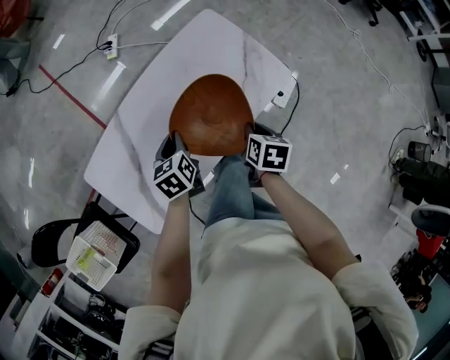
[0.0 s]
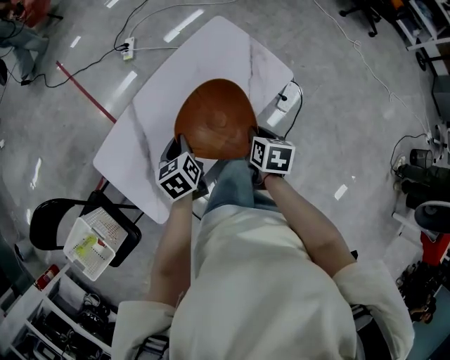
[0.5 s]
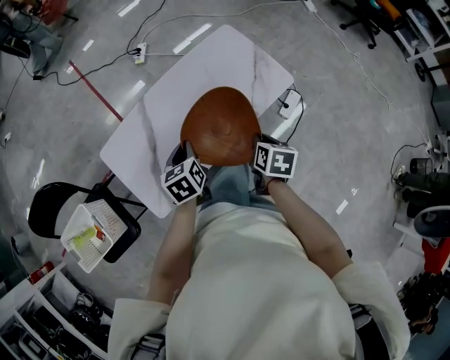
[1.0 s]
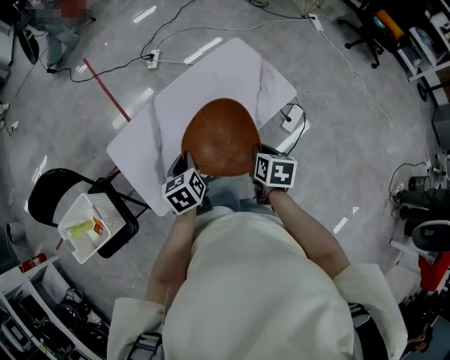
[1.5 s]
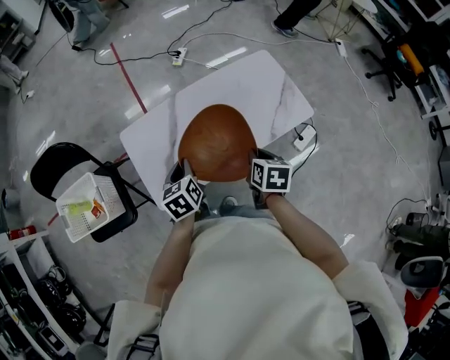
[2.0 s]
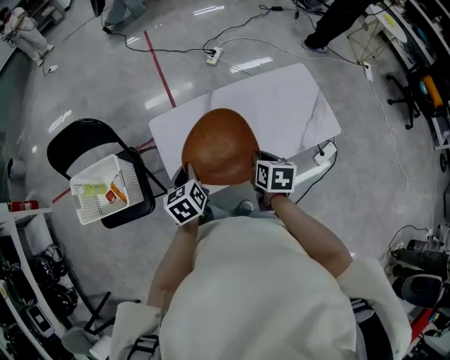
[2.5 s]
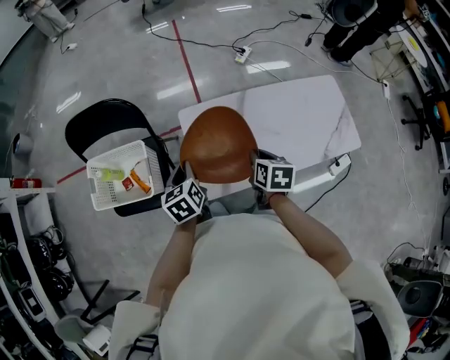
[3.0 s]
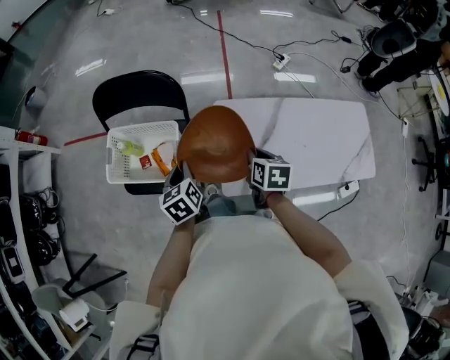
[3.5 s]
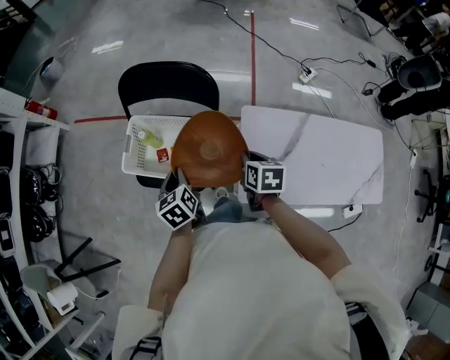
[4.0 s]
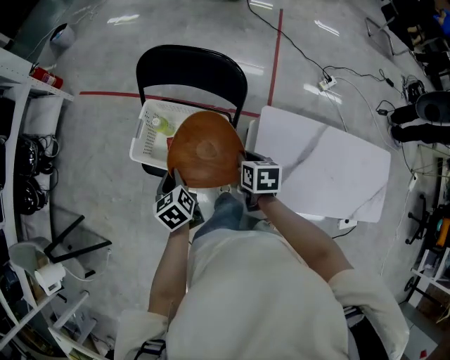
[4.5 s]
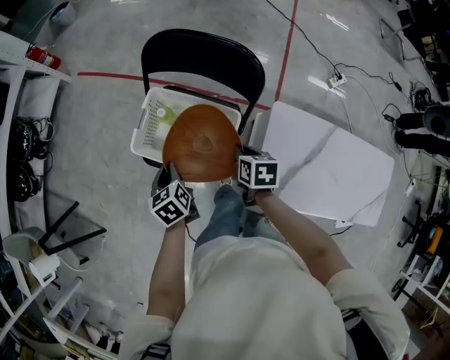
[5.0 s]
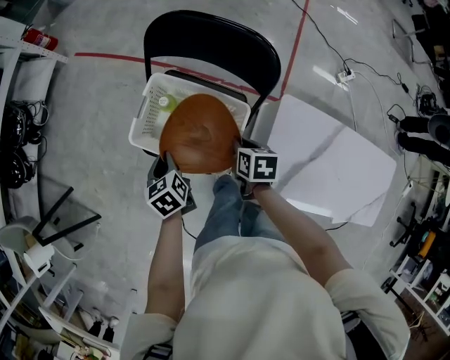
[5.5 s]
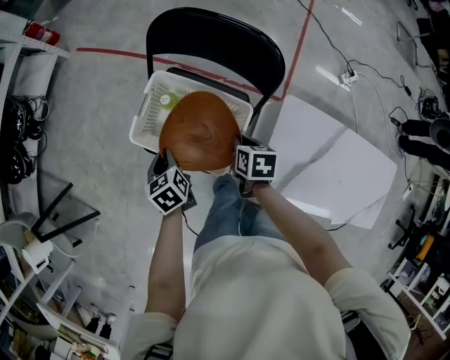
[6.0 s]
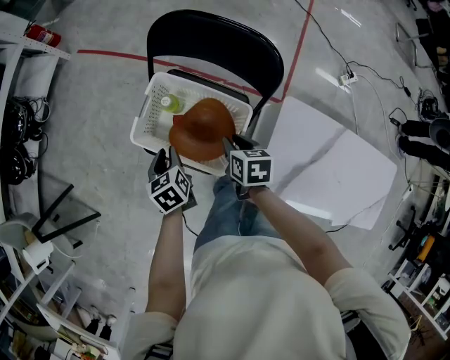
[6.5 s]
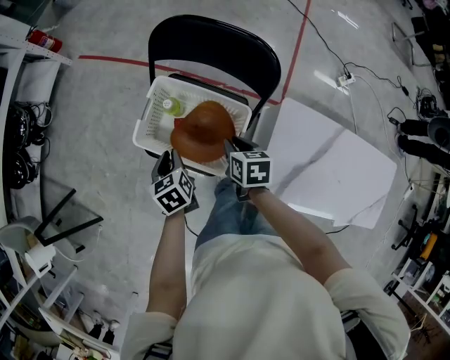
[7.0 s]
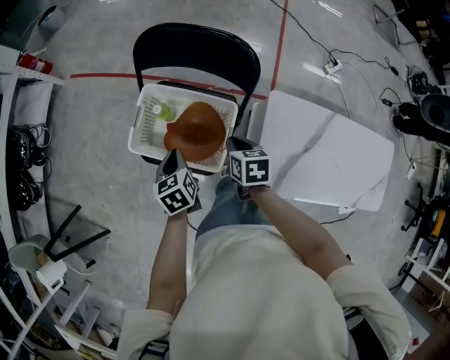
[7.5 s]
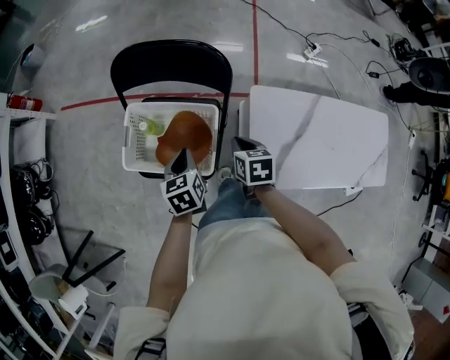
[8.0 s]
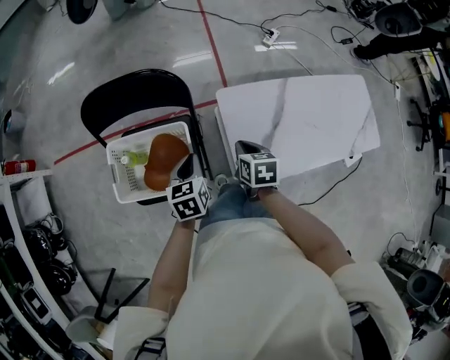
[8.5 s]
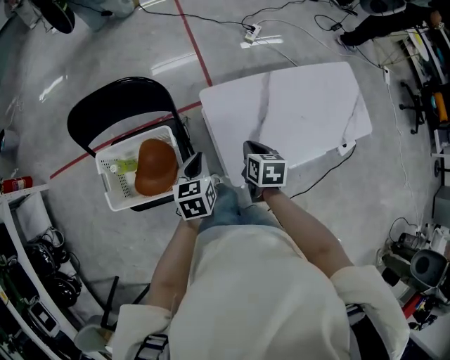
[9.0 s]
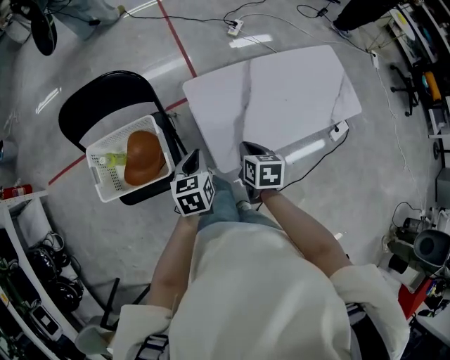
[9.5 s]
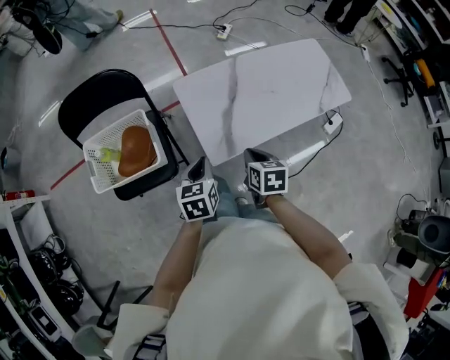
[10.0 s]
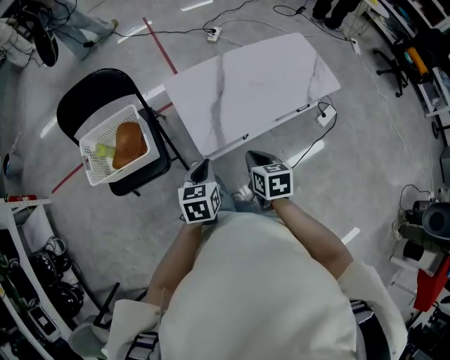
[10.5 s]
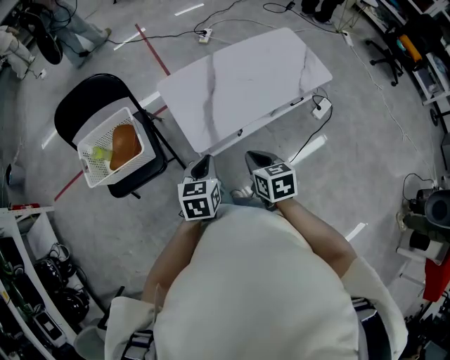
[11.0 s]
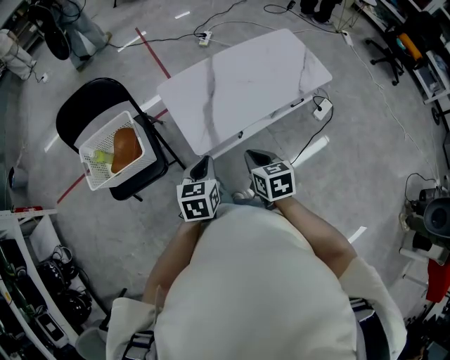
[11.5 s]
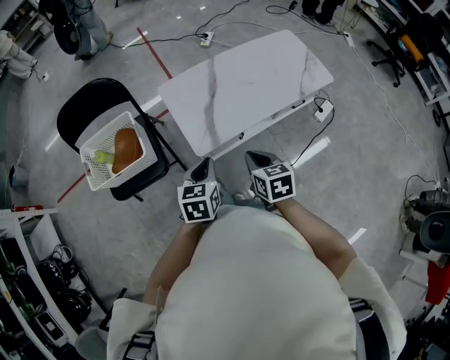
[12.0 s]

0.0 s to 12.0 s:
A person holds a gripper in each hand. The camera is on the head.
0.0 to 2.0 s: The right gripper heads upward, to the left and backward, covering about 20 cm, and changes its angle by some 20 degrees. The left gripper goes about 25 cm backward, to the left and upward.
2.0 to 4.0 s: The two grippers travel together, about 50 cm. The right gripper rotates some 40 degrees; the left gripper changes its angle by about 40 degrees.
4.0 to 6.0 s: The left gripper heads to the left, downward and forward, covering approximately 20 cm; the right gripper goes roughly 20 cm forward, downward and to the left.
6.0 to 8.0 s: The right gripper moves some 10 cm. Meanwhile the left gripper ends up roughly 15 cm from where it was, and turns by some 30 degrees.
8.0 to 10.0 s: The left gripper changes place by some 30 cm, and turns by some 30 degrees. Meanwhile the right gripper shifts by approximately 35 cm, and turns by approximately 30 degrees.
10.0 to 12.0 s: Both grippers move backward and to the right, some 15 cm.

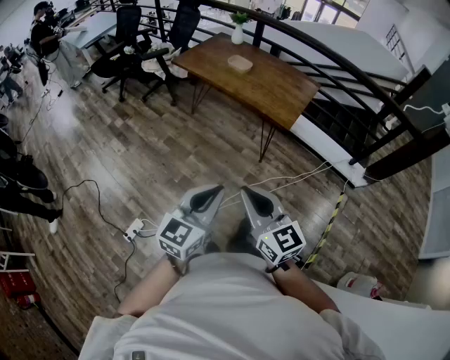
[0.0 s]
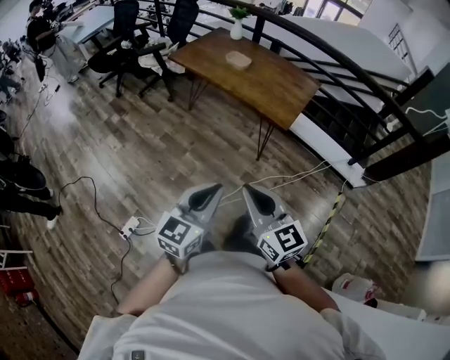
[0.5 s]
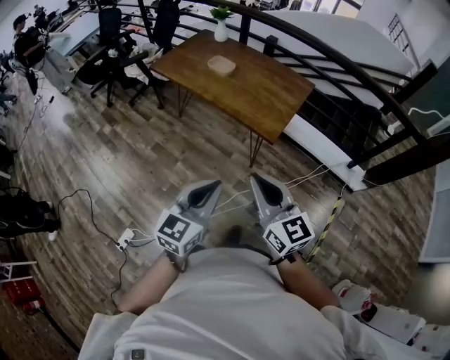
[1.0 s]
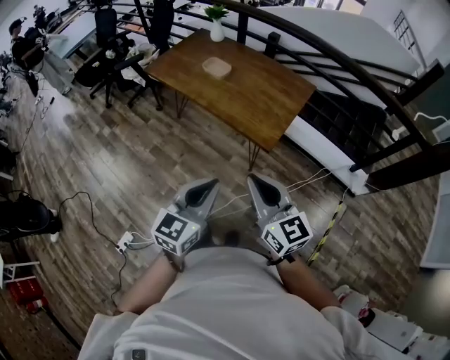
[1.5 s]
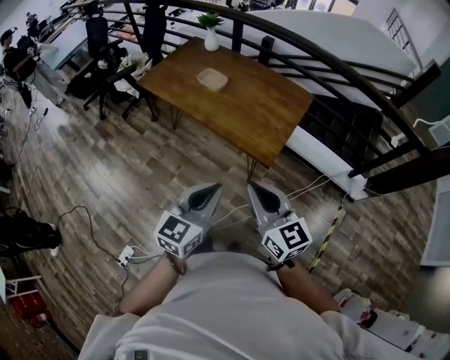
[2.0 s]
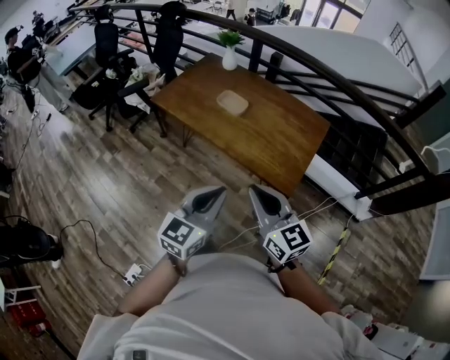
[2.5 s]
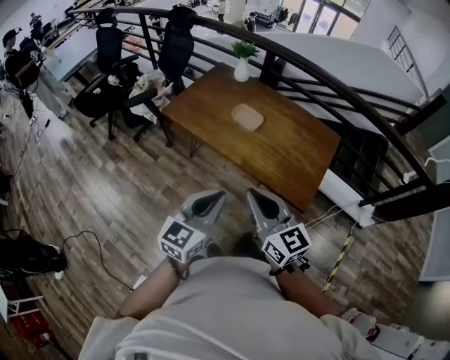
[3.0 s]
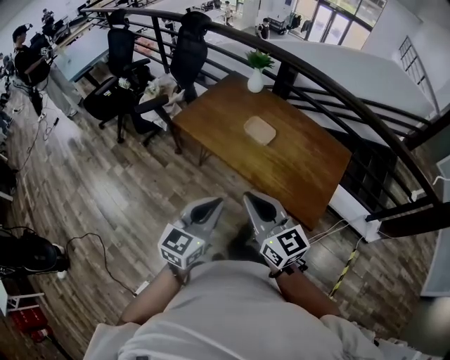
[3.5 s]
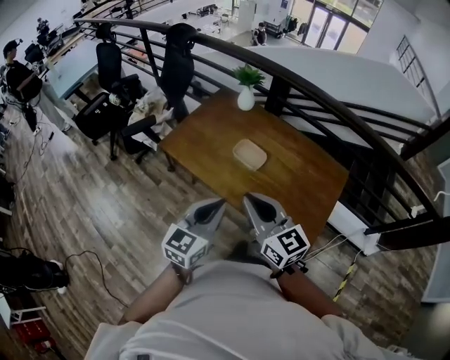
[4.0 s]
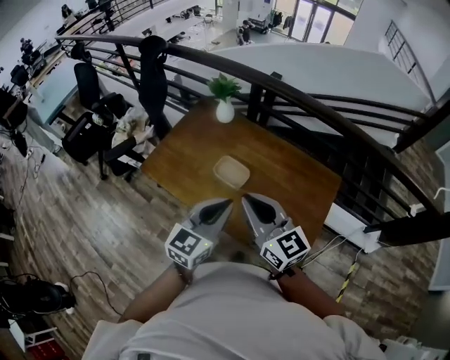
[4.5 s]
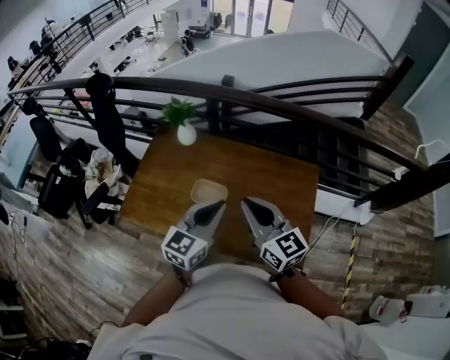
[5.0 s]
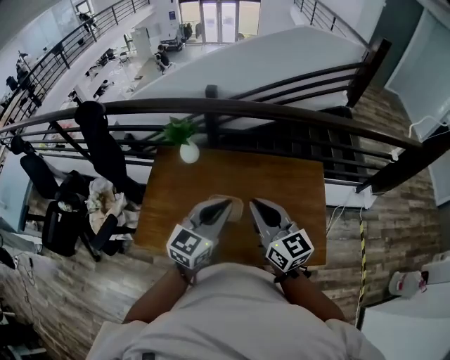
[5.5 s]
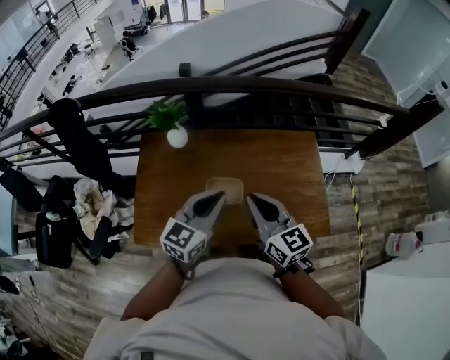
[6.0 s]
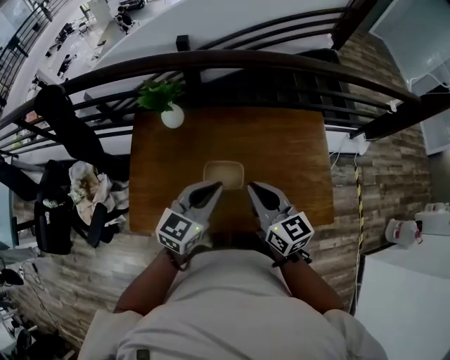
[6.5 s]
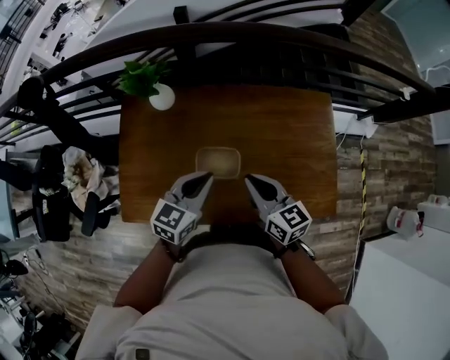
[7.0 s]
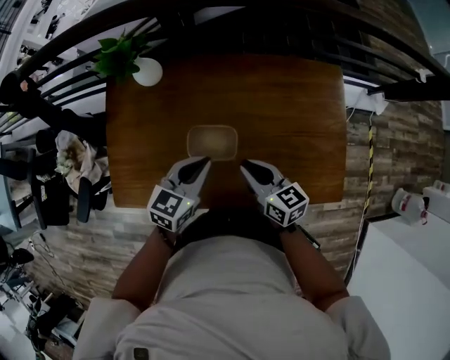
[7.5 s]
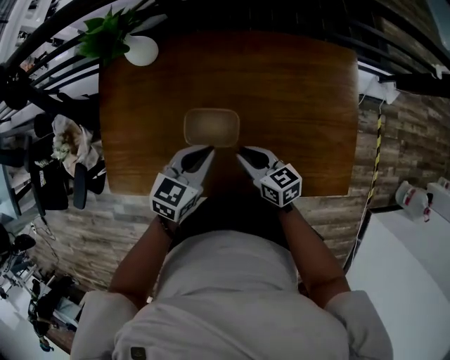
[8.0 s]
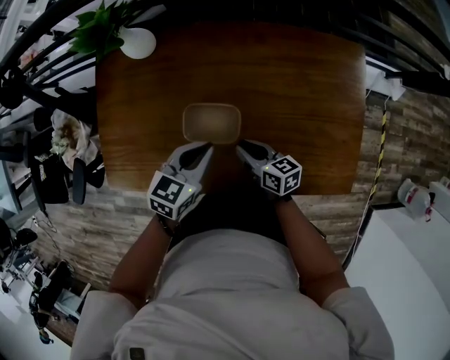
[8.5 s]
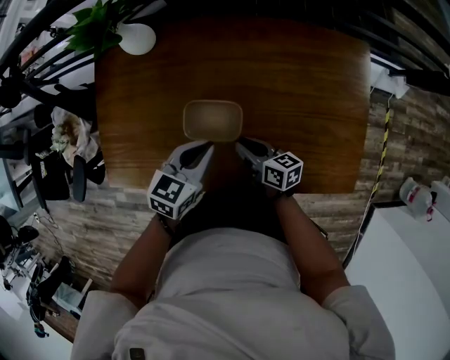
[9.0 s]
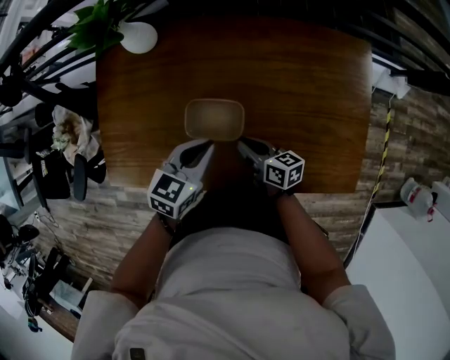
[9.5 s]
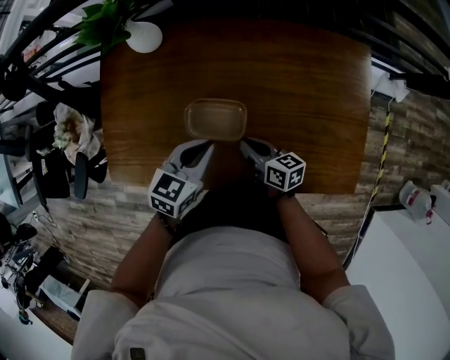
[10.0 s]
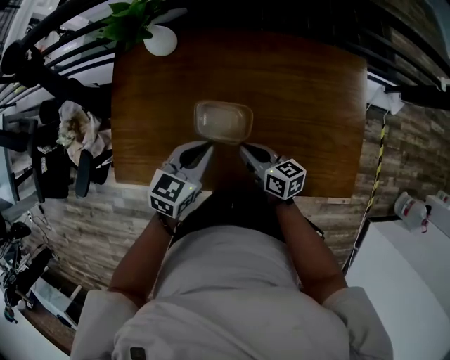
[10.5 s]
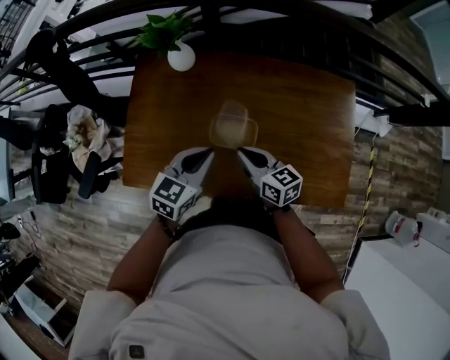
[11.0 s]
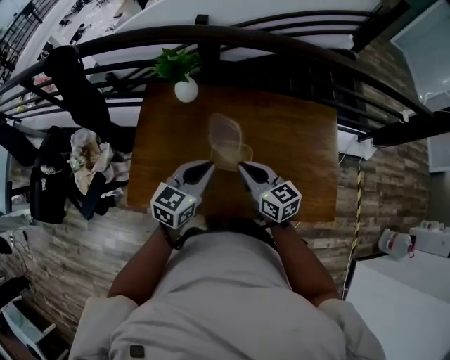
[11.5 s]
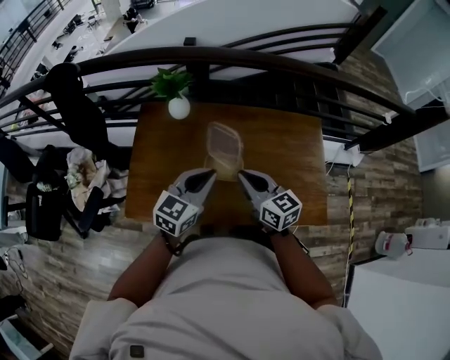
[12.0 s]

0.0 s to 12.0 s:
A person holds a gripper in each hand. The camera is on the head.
0.0 to 2.0 s: The two grippers travel together, forward and to the right, approximately 40 cm.
2.0 to 4.0 s: The pair of grippers is taken forward and to the left, roughly 50 cm.
4.0 to 6.0 s: The right gripper moves approximately 30 cm, and changes its angle by some 40 degrees, while the left gripper shifts by some 35 cm, and turns by approximately 40 degrees.
6.0 to 8.0 s: The grippers both shift downward by approximately 35 cm. The left gripper swivels some 30 degrees. Meanwhile the right gripper swivels some 30 degrees.
8.0 to 10.0 s: The right gripper changes place by some 5 cm.
10.0 to 12.0 s: The grippers both shift upward by approximately 30 cm. The right gripper swivels approximately 40 degrees. Meanwhile the left gripper rotates some 20 degrees.

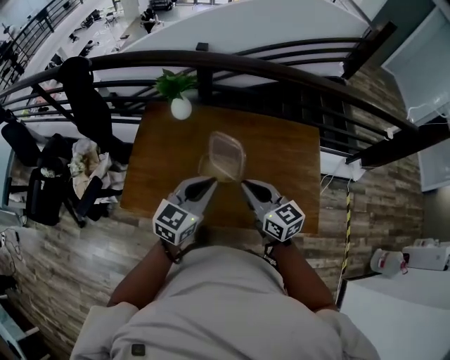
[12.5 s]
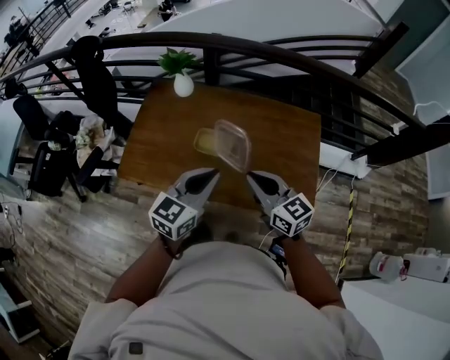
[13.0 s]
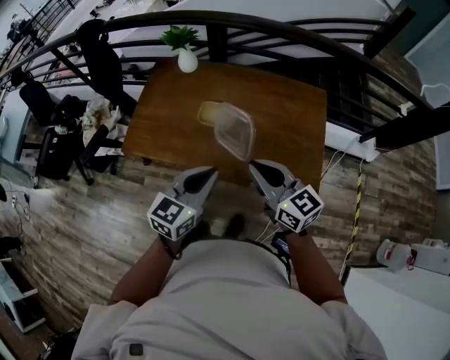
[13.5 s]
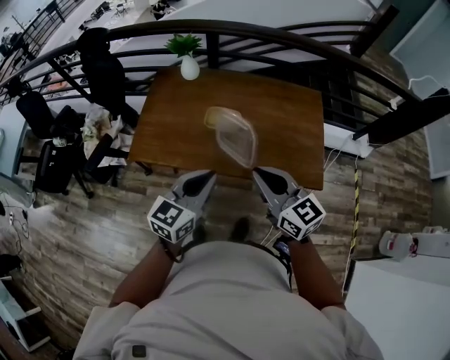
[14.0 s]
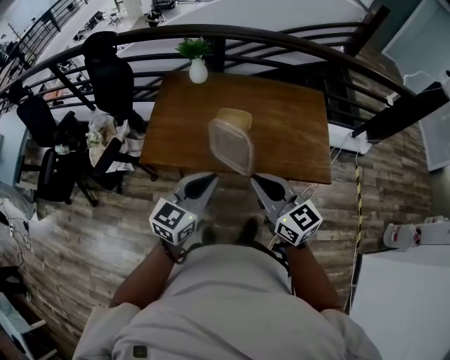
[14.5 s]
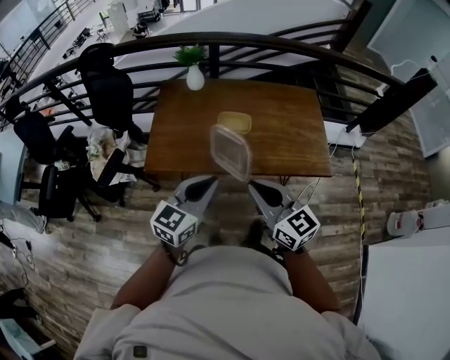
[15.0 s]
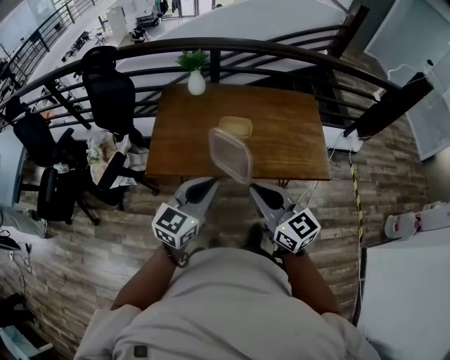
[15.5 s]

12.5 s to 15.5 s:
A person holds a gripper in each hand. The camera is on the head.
12.5 to 14.0 s: Both grippers travel together backward, about 25 cm.
14.0 to 15.5 s: Both grippers travel together to the left and backward, approximately 15 cm.
